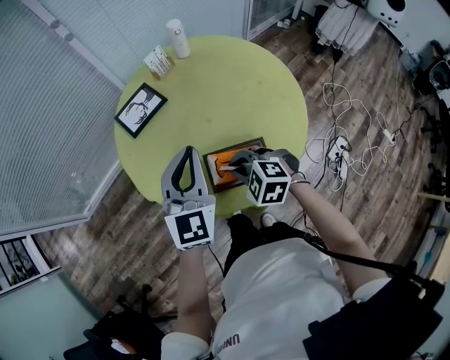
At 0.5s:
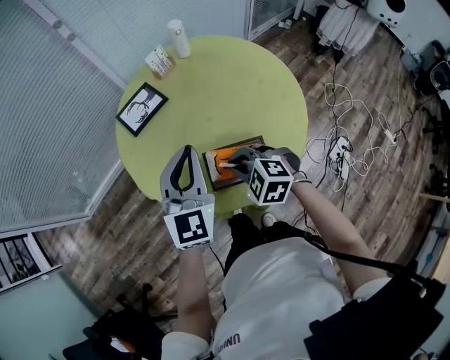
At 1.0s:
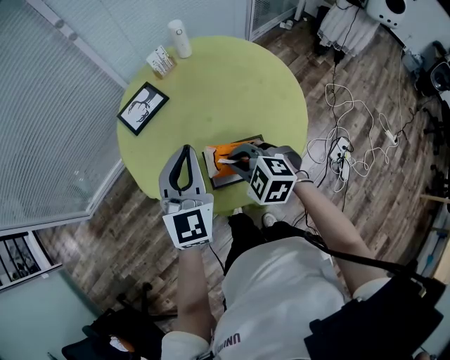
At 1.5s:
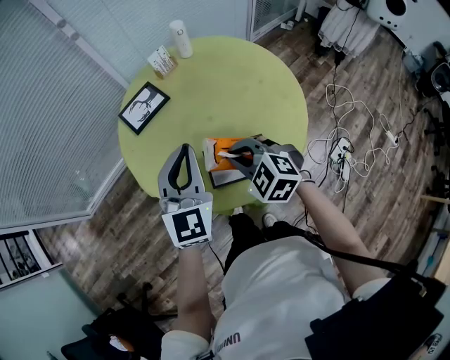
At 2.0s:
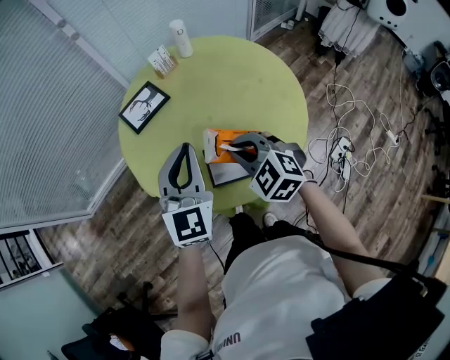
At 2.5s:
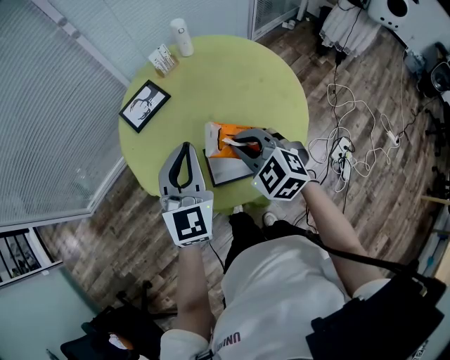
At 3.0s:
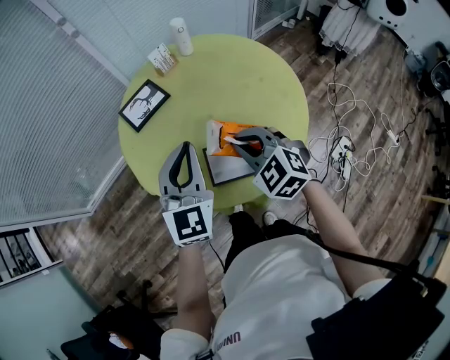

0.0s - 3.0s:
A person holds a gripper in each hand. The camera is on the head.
0.0s - 1.5s: The right gripper moves upward, approximately 5 cm.
1.5s - 3.0s: The grippers make only small movements.

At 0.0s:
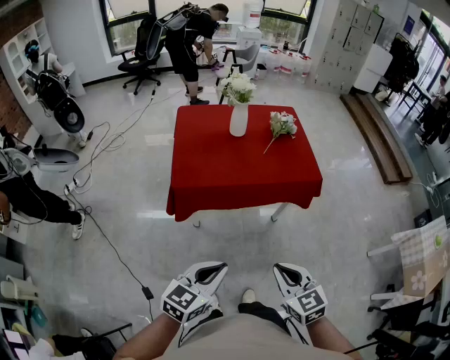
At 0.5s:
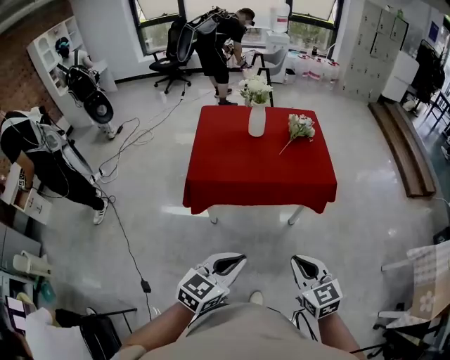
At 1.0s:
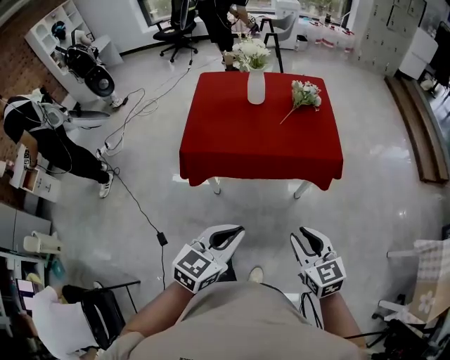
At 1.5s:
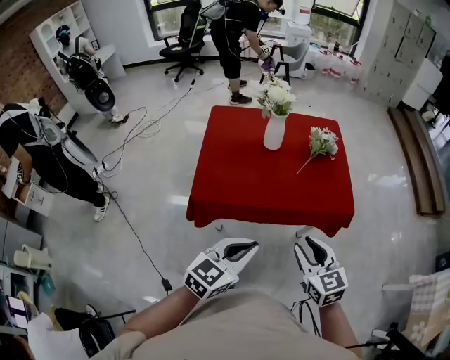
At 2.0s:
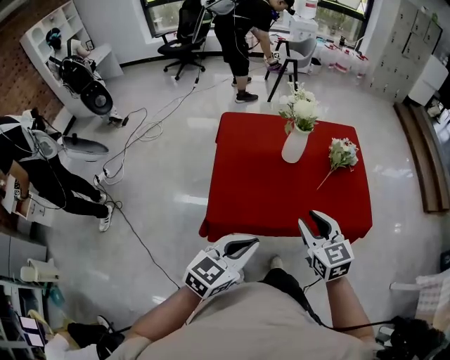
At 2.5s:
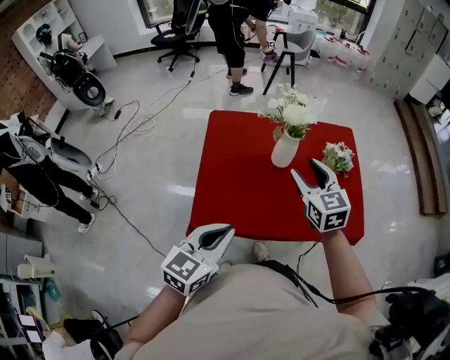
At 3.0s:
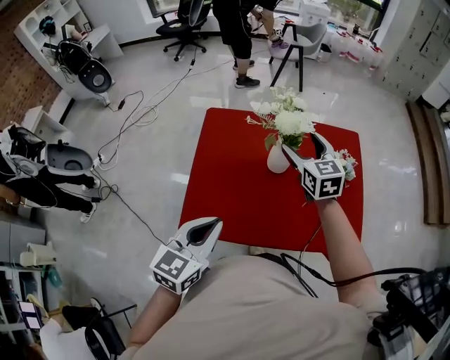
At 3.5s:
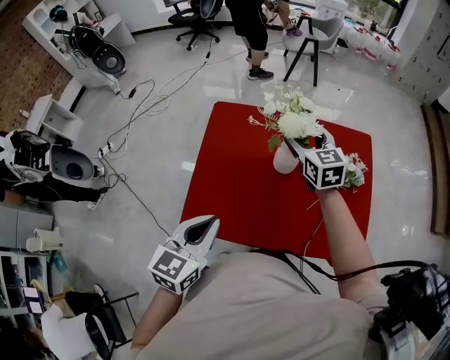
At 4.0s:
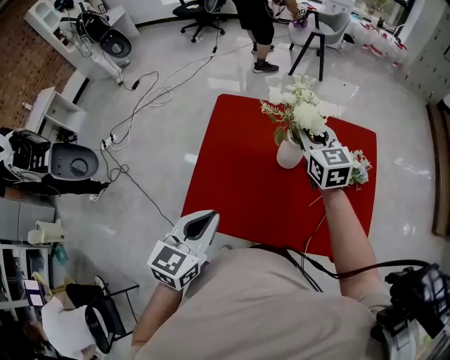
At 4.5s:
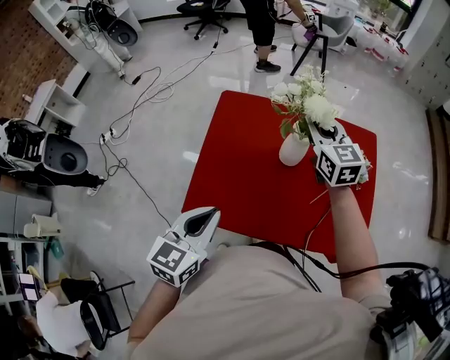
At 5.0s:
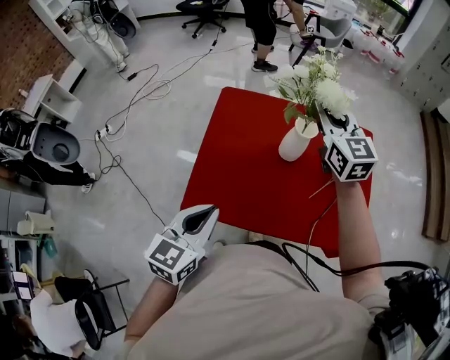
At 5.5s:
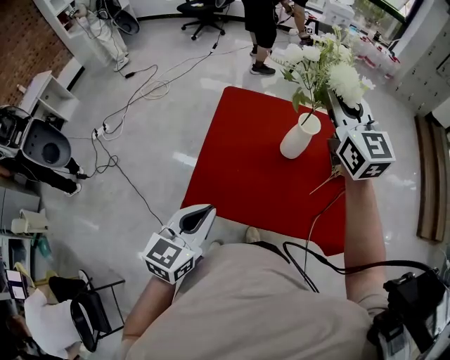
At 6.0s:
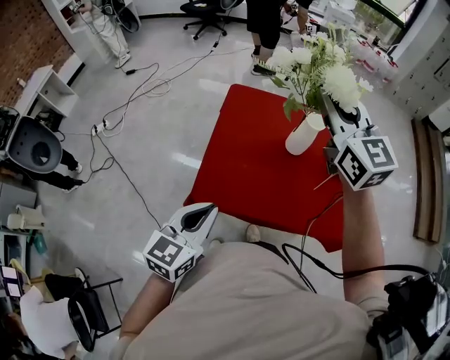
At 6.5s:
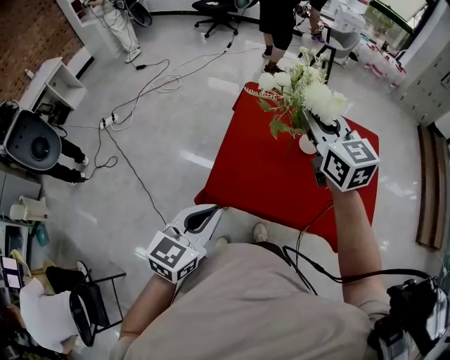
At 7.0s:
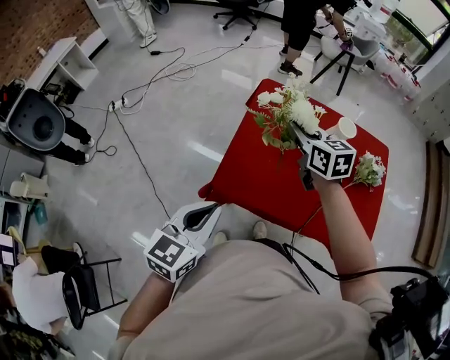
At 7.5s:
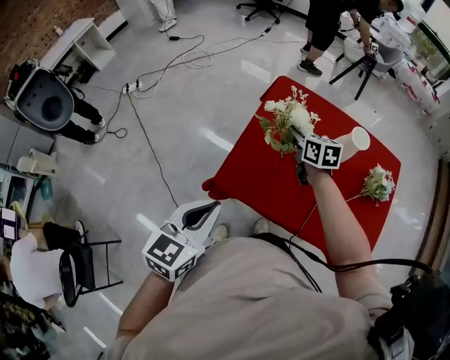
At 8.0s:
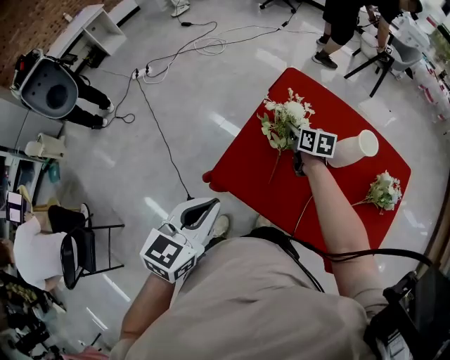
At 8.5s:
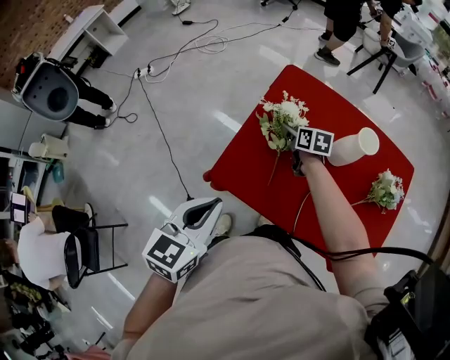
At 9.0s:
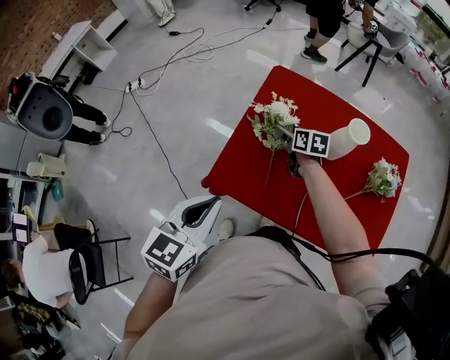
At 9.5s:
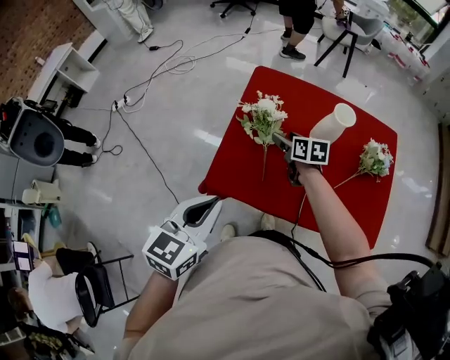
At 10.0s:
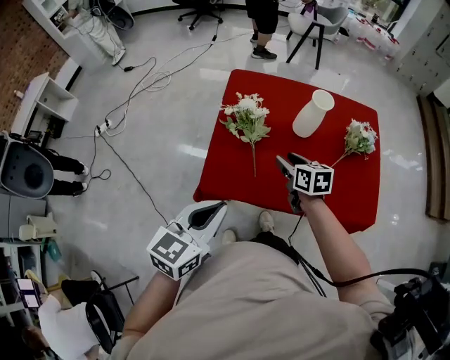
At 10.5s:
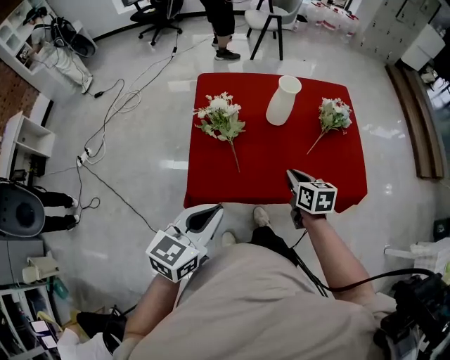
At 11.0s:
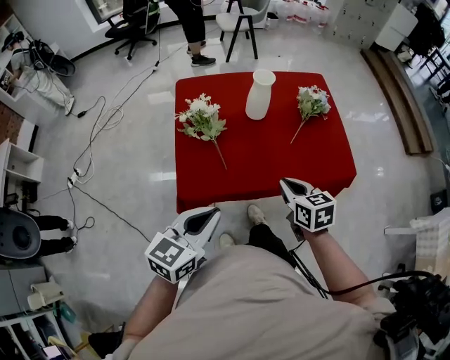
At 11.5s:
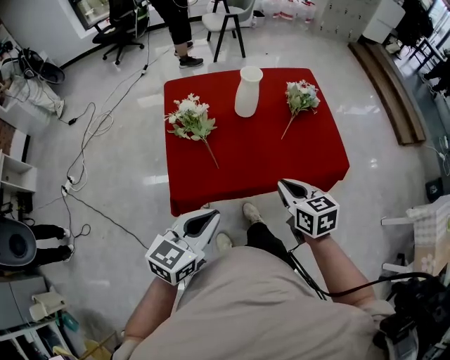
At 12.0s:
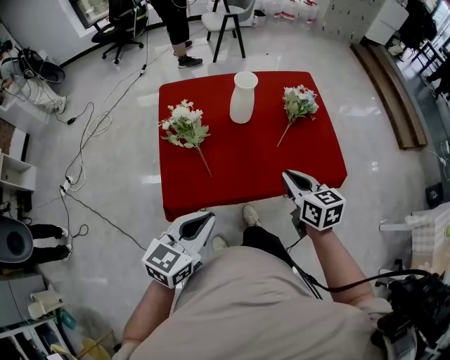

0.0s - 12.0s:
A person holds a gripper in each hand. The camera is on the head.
0.0s - 2.0s: Both grippers move forward, roughly 35 cm.
2.0s - 4.0s: The left gripper moves forward, roughly 15 cm, and swivels about 30 degrees, while the right gripper moves forward, approximately 35 cm, and opens, then closes once more.
4.0s - 6.0s: The right gripper travels upward and backward by approximately 25 cm, while the left gripper goes approximately 10 cm backward and to the left.
6.0s - 8.0s: The right gripper heads downward, covering some 40 cm, and angles its fingers downward, by some 40 degrees. Meanwhile the left gripper rotates some 20 degrees.
8.0s - 10.0s: The right gripper moves backward, some 20 cm, while the left gripper changes its angle by roughly 20 degrees.
10.0s - 12.0s: The right gripper travels to the right, backward and upward by some 20 cm, and closes up. The left gripper moves to the right, roughly 5 cm.

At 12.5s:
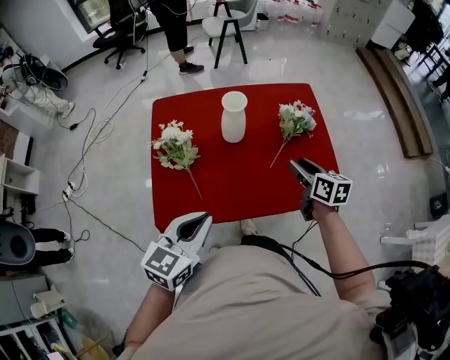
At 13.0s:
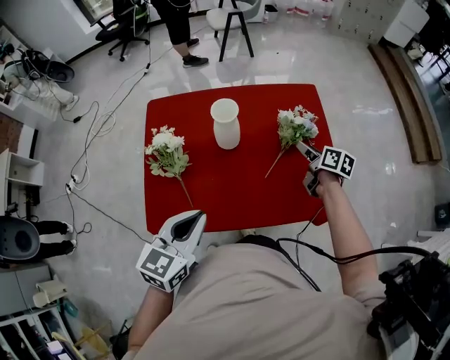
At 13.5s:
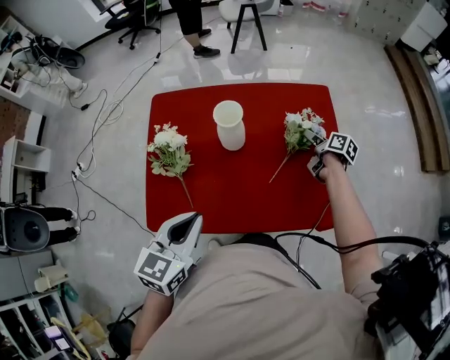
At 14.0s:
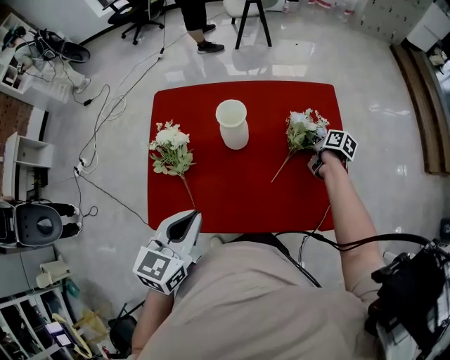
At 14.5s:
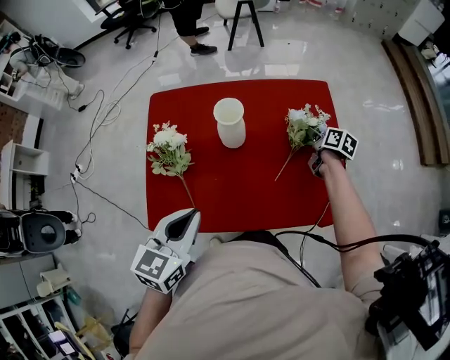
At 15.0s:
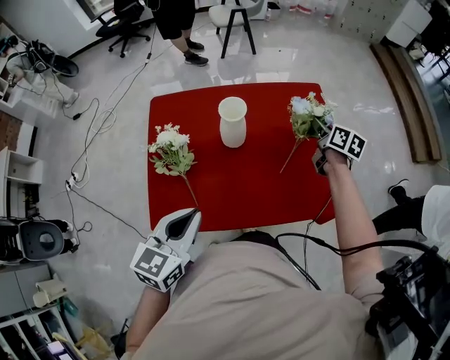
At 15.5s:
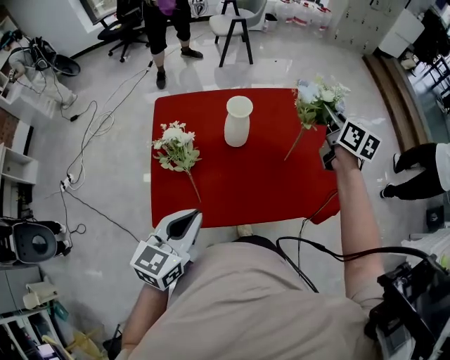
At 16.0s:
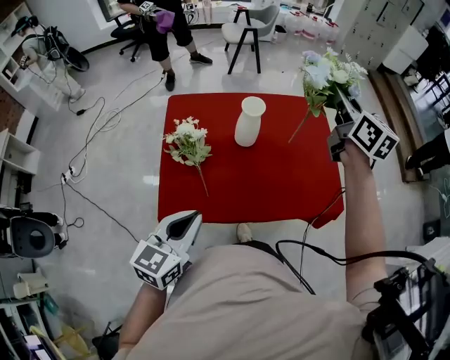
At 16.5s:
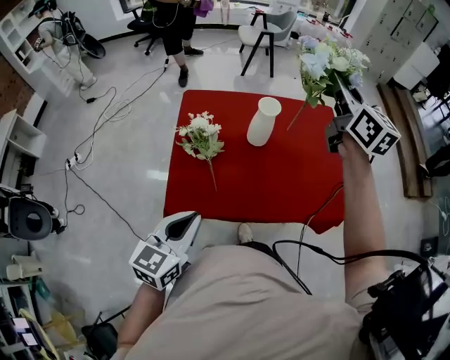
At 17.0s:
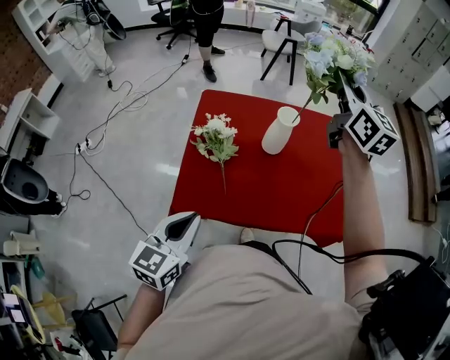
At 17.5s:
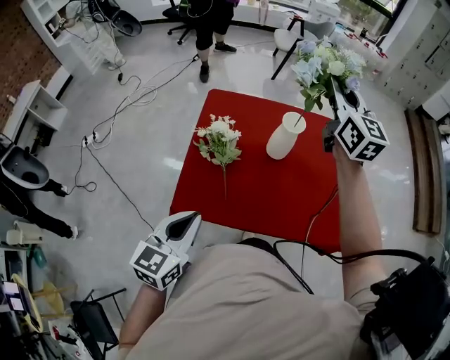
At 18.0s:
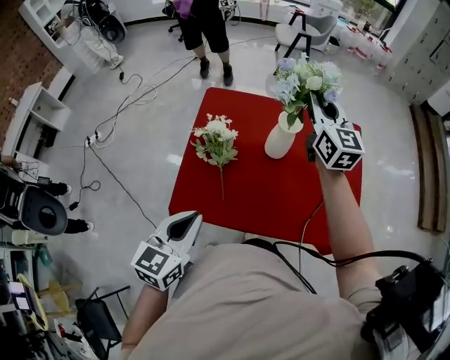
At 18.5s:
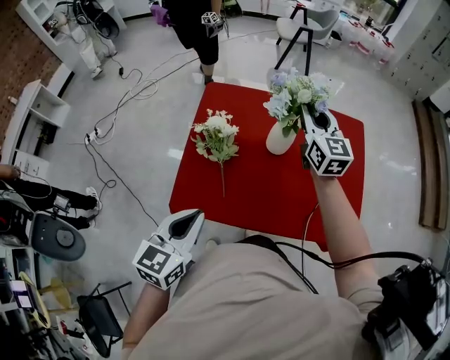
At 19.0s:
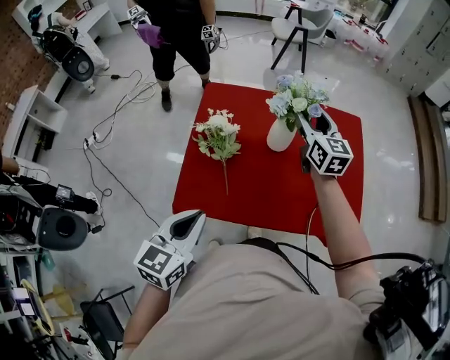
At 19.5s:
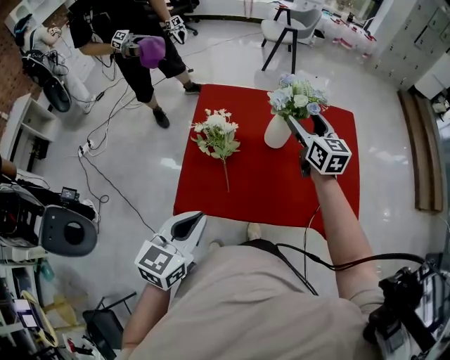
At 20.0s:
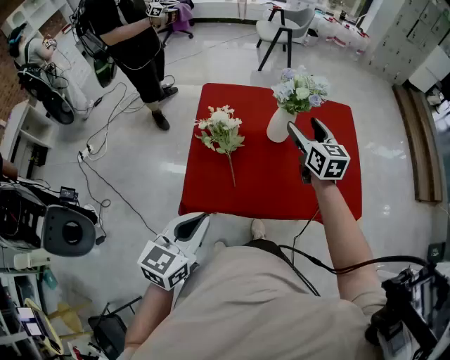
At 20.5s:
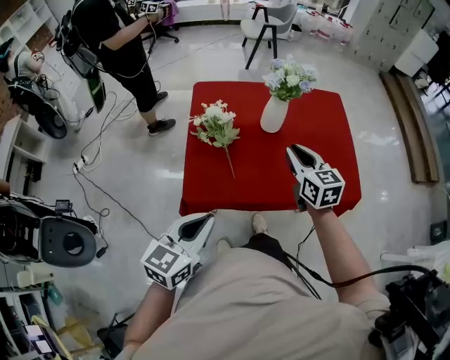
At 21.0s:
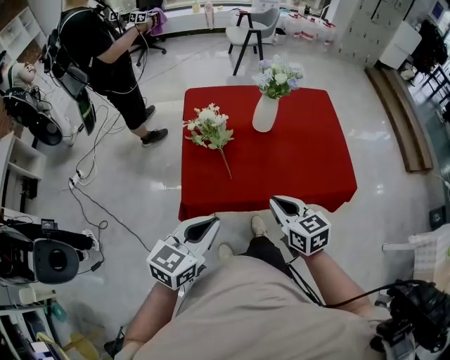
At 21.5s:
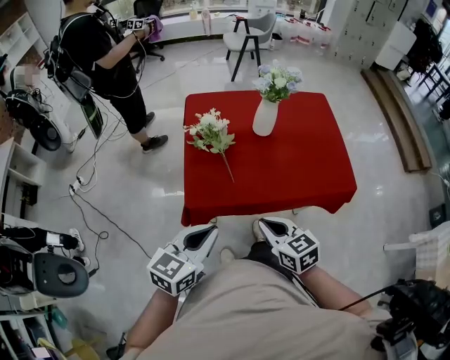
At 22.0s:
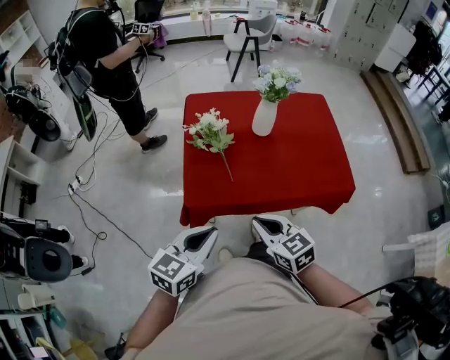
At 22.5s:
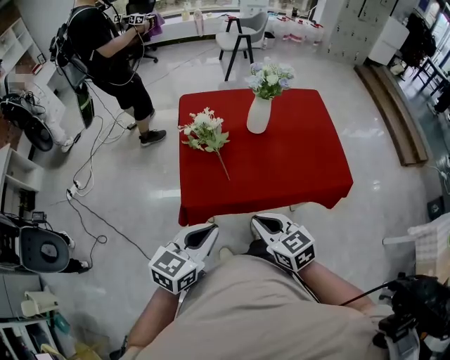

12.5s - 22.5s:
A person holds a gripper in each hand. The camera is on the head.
12.5s - 14.5s: The right gripper goes approximately 25 cm forward, downward and to the right, changes its angle by roughly 20 degrees, and closes up. Meanwhile the left gripper moves forward, roughly 10 cm.
14.5s - 16.5s: The right gripper goes roughly 40 cm upward, and tilts its fingers approximately 40 degrees upward. Meanwhile the left gripper heads backward and to the left, covering some 15 cm.
16.5s - 18.5s: The left gripper heads forward, covering about 5 cm. Meanwhile the right gripper goes roughly 20 cm downward, to the left and forward.
18.5s - 20.5s: The right gripper moves backward, some 25 cm, and opens, then closes again. Meanwhile the left gripper goes approximately 10 cm backward.
20.5s - 22.5s: The right gripper shifts about 25 cm backward and to the left.

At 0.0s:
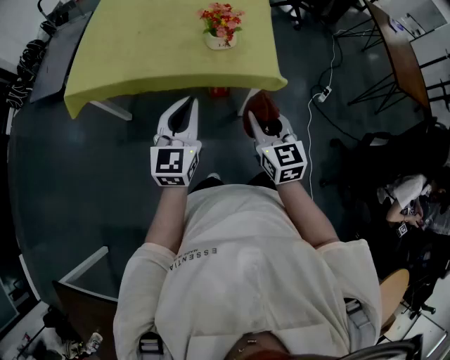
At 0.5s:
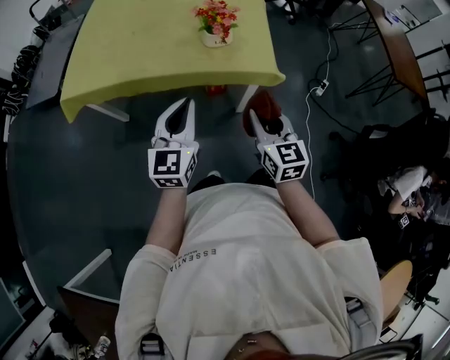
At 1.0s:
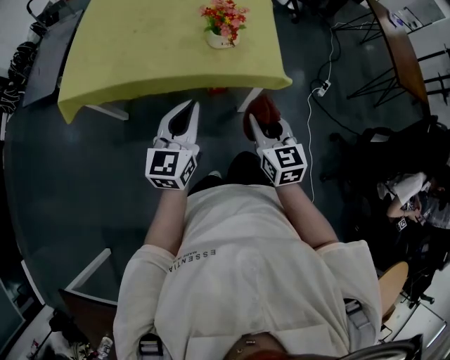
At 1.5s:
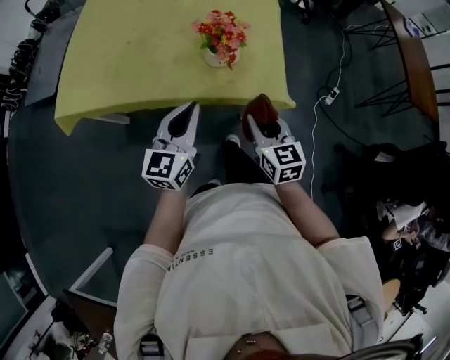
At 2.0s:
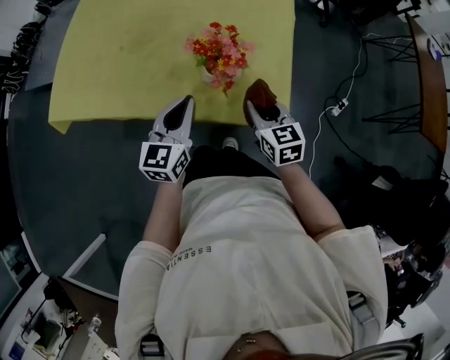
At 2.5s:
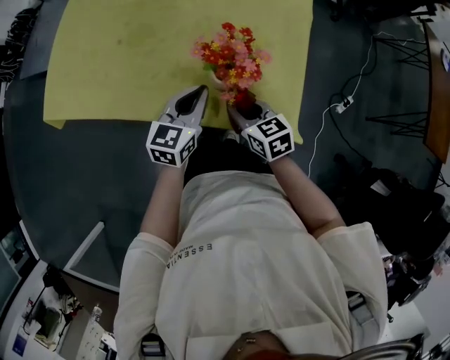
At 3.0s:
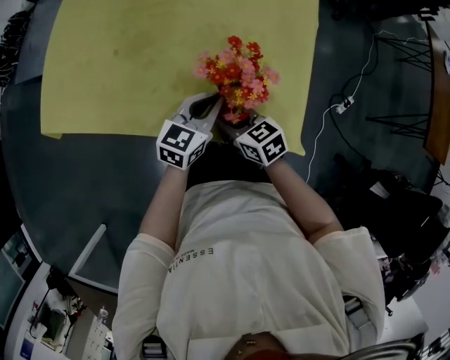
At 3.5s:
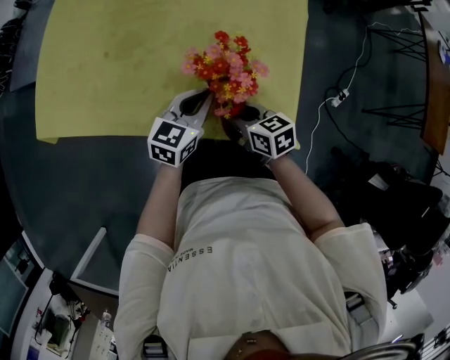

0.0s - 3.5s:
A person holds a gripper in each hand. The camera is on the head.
0.0s - 2.0s: The left gripper travels forward by roughly 25 cm; the right gripper is displaced forward and downward by about 30 cm.
2.0s - 3.5s: The left gripper shifts about 10 cm downward and forward, and swivels roughly 20 degrees; the right gripper heads to the left and downward, covering roughly 10 cm, and rotates roughly 30 degrees.
